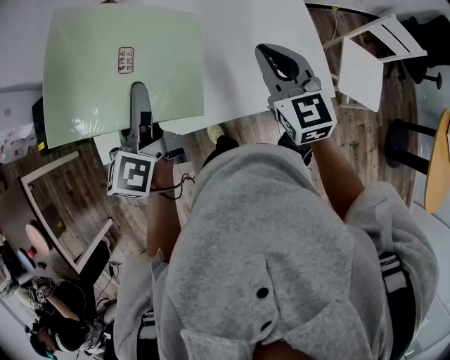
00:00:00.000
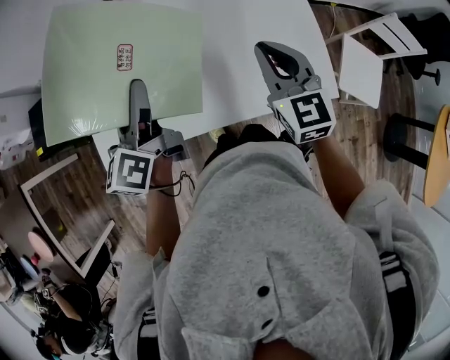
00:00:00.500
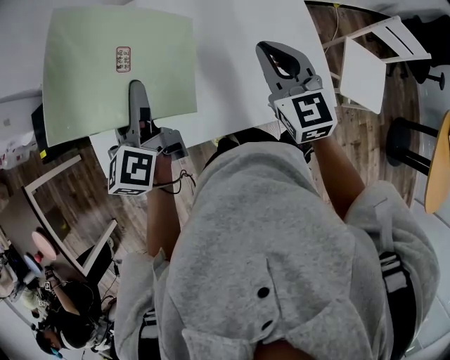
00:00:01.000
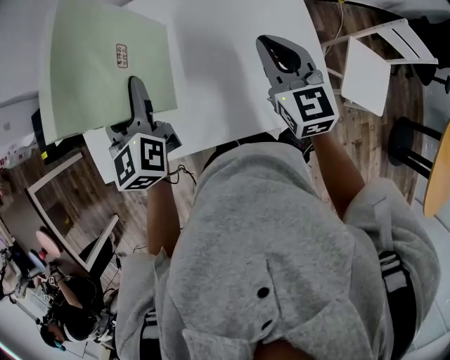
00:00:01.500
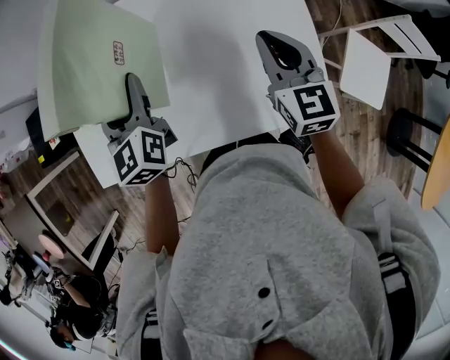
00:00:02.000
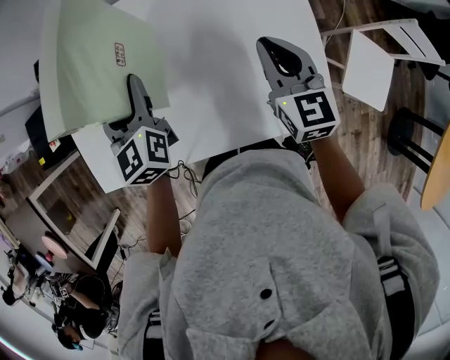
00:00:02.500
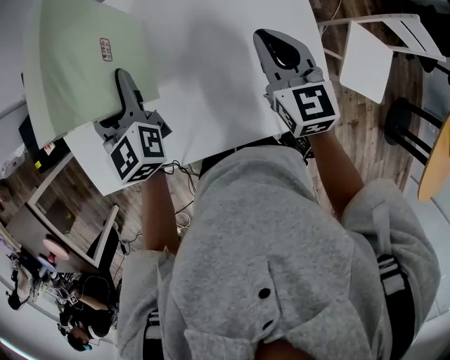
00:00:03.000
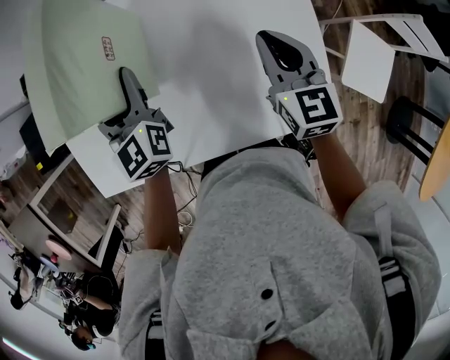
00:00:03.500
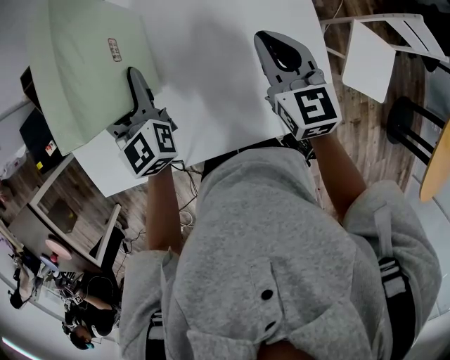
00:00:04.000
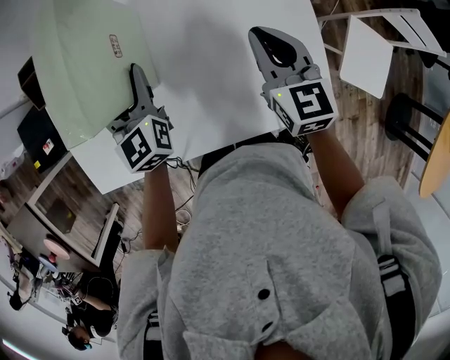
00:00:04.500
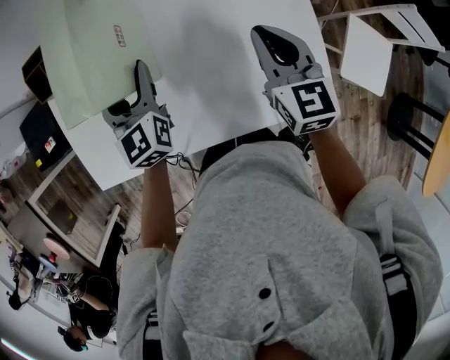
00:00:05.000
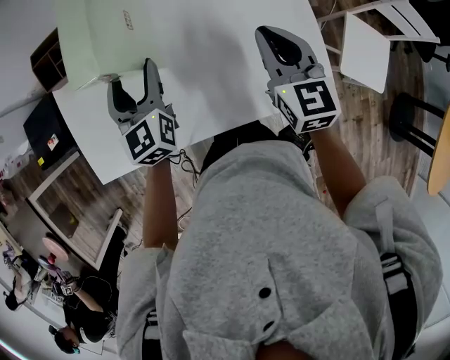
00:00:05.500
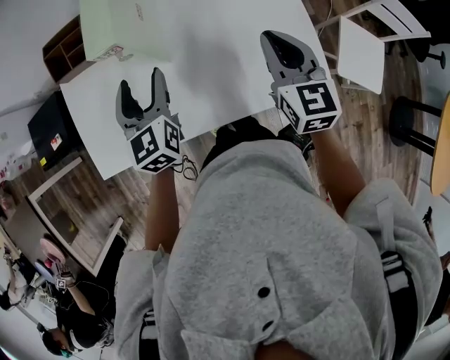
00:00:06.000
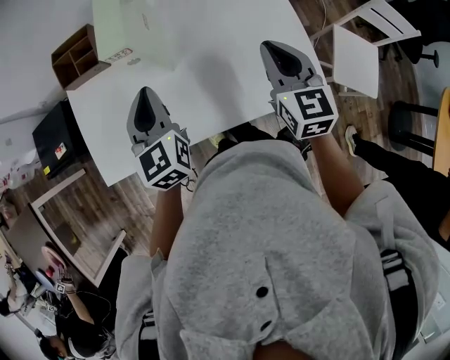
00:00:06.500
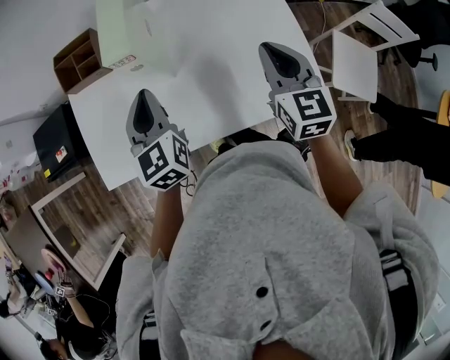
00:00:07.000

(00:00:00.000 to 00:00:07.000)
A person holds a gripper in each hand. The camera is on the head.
00:00:00.000 - 00:00:02.000: The right gripper shifts approximately 15 cm forward and to the right; the left gripper is displaced forward, to the right and downward by approximately 15 cm, and turns by approximately 40 degrees.
00:00:02.000 - 00:00:03.500: The left gripper moves forward, some 5 cm. The right gripper moves some 5 cm.
00:00:03.500 - 00:00:05.000: There are only small adjustments of the grippers.
00:00:05.000 - 00:00:07.000: The two grippers go roughly 10 cm backward and upward. The left gripper closes up.

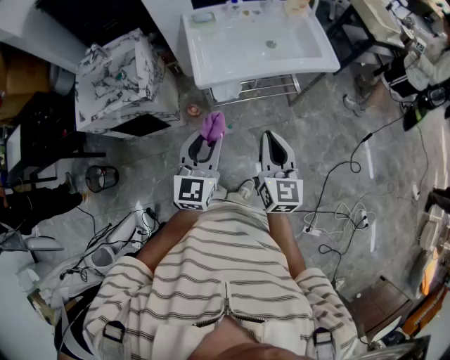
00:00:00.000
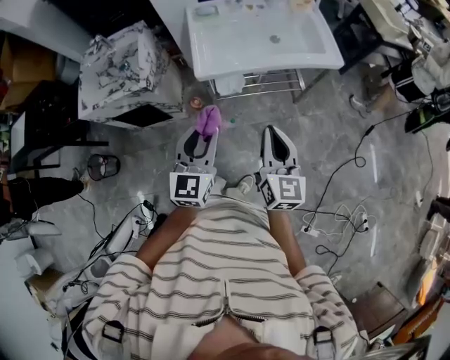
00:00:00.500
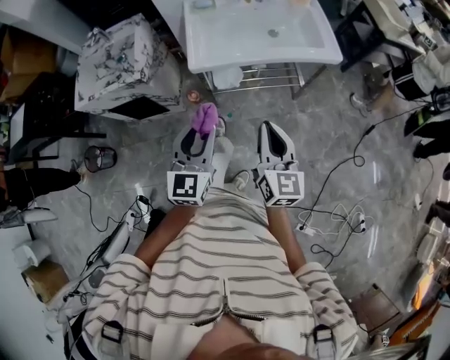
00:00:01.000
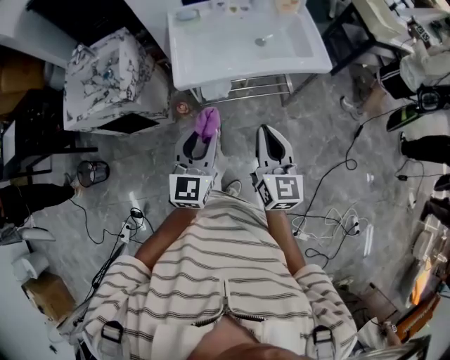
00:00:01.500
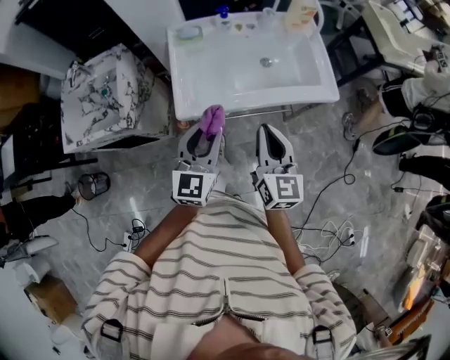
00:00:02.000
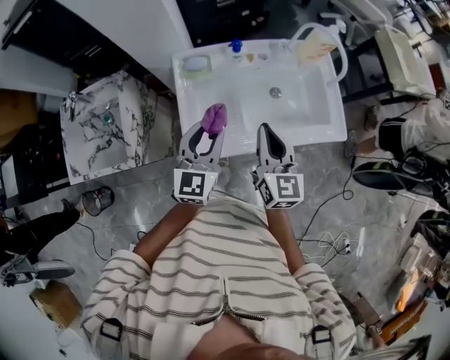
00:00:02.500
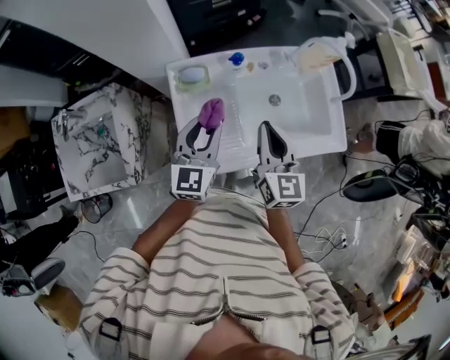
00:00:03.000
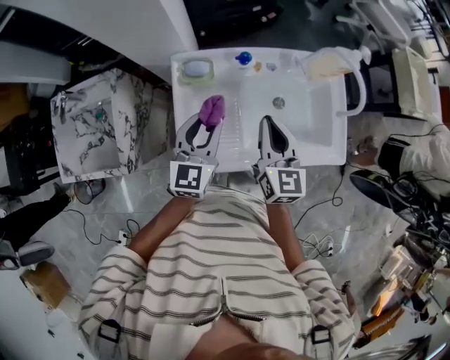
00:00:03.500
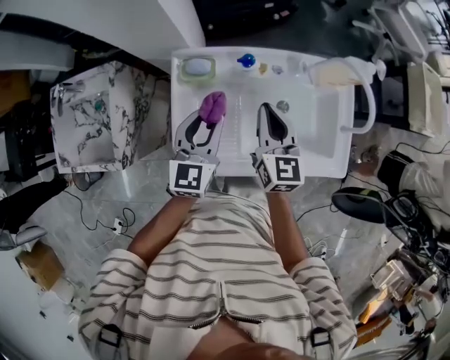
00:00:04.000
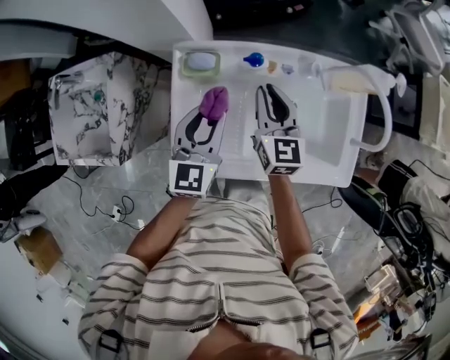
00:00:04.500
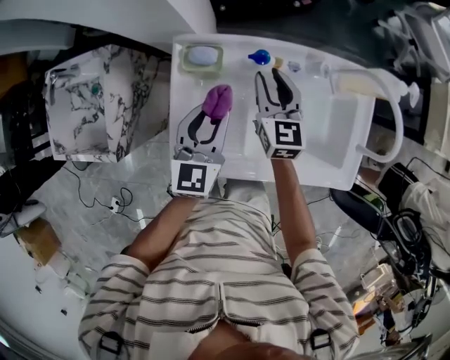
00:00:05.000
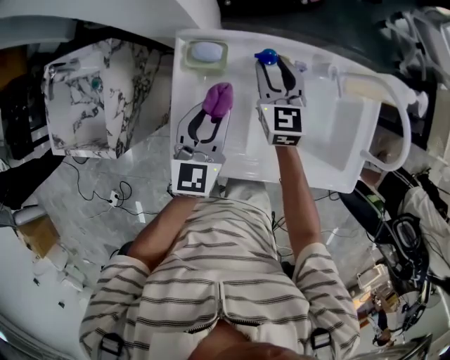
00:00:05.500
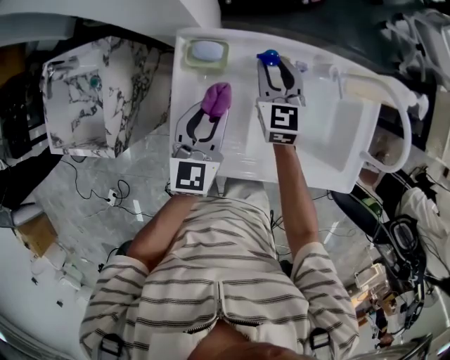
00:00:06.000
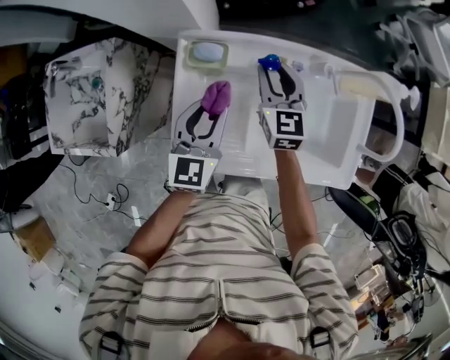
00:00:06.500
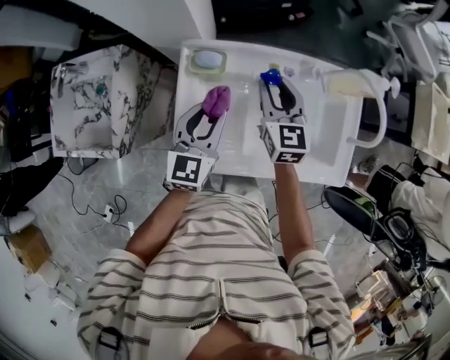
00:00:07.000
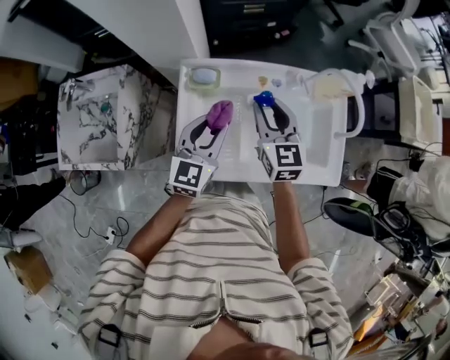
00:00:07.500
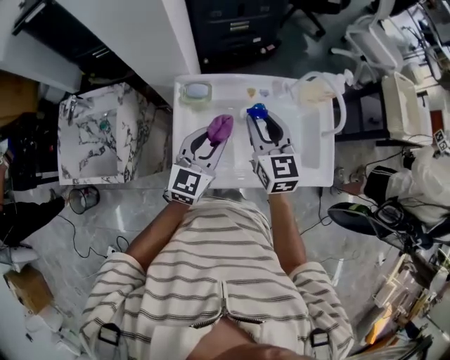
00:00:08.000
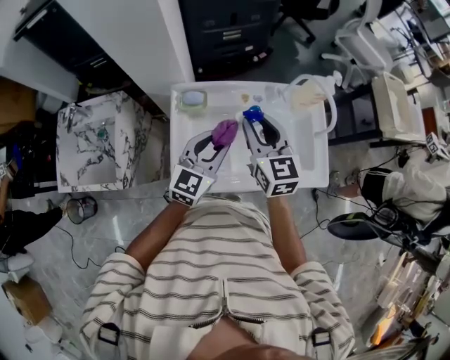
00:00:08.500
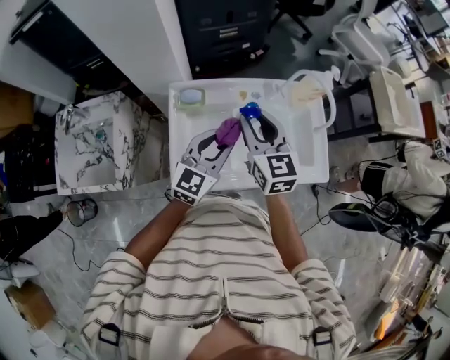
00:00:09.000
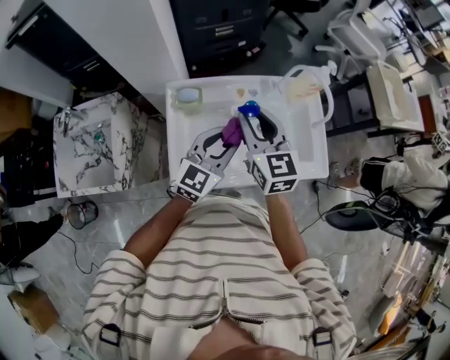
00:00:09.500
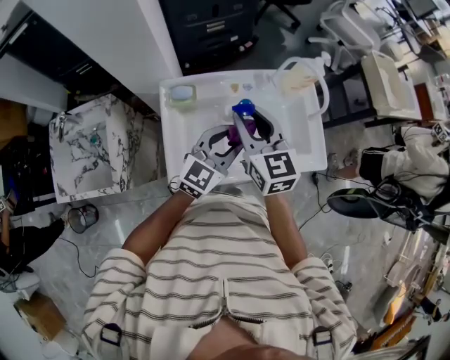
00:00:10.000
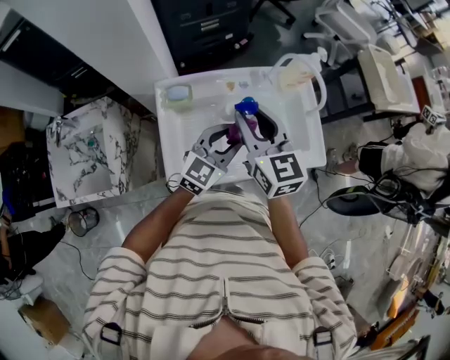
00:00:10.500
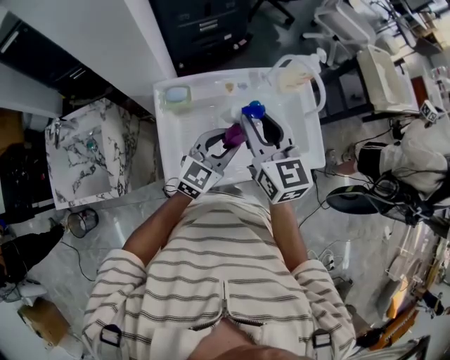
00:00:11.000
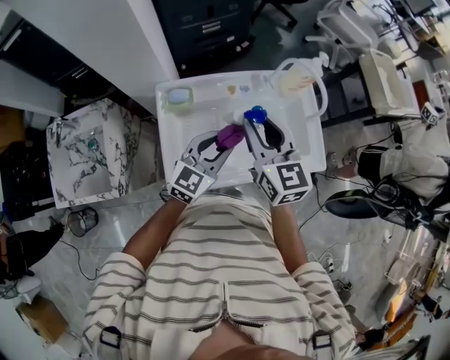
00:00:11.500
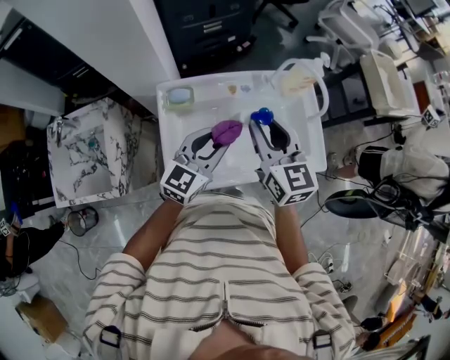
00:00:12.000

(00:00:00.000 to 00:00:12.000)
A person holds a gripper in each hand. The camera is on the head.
00:00:00.000 - 00:00:02.000: The two grippers go about 20 cm forward.
00:00:02.000 - 00:00:04.000: Both grippers travel together forward, roughly 35 cm.
00:00:04.000 - 00:00:06.000: The left gripper moves downward, approximately 5 cm. The right gripper travels forward and downward by roughly 15 cm, and opens up.
00:00:06.000 - 00:00:08.000: The left gripper is displaced upward and backward by approximately 10 cm, and changes its angle by about 20 degrees. The right gripper moves upward and backward, roughly 25 cm.
00:00:08.000 - 00:00:10.000: The right gripper changes place by about 5 cm. The left gripper moves to the right, about 10 cm, and turns by some 20 degrees.
00:00:10.000 - 00:00:12.000: There are only small adjustments of the grippers.

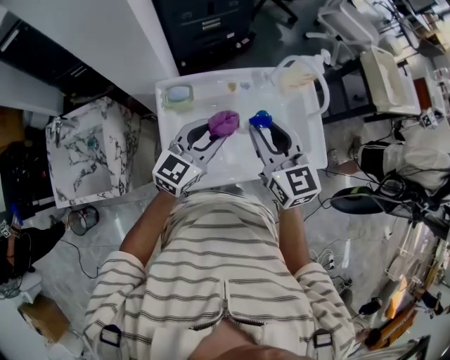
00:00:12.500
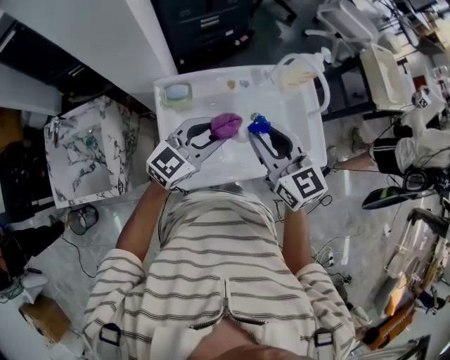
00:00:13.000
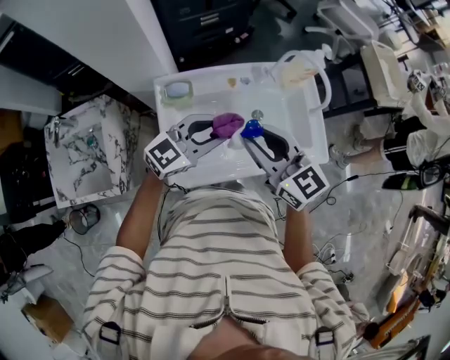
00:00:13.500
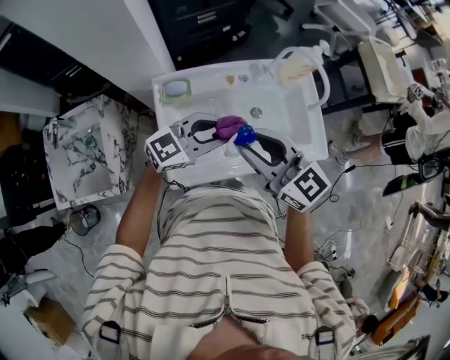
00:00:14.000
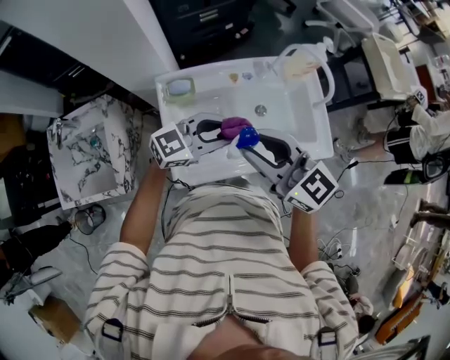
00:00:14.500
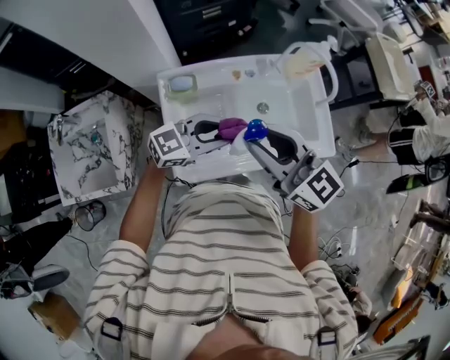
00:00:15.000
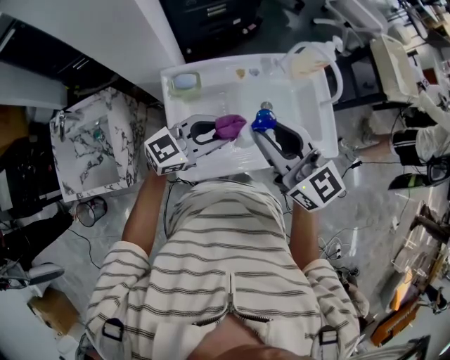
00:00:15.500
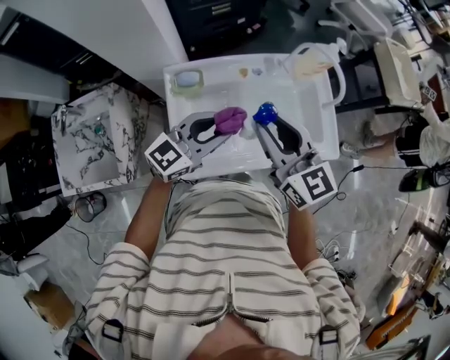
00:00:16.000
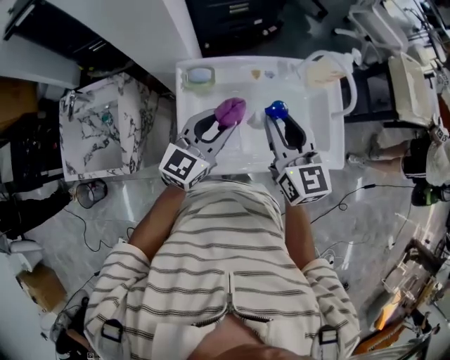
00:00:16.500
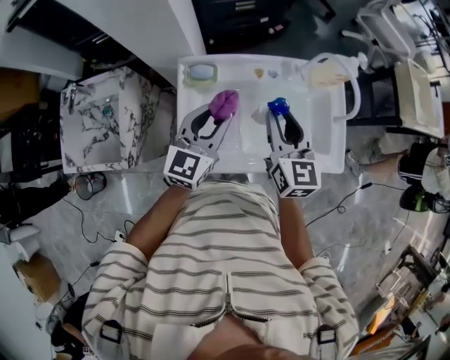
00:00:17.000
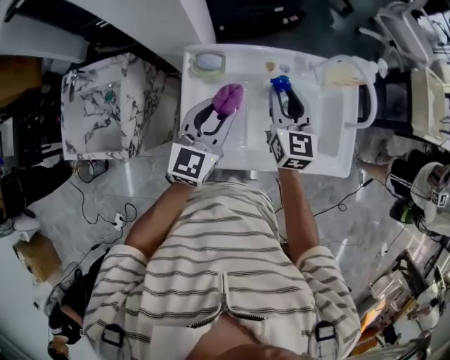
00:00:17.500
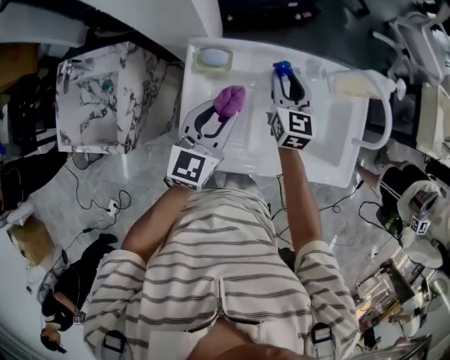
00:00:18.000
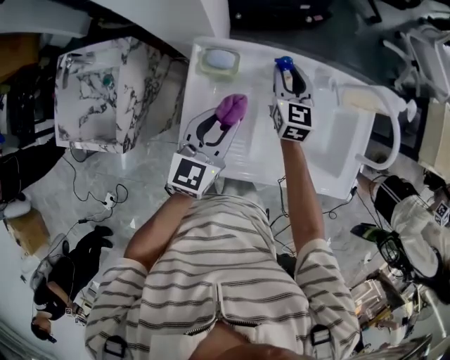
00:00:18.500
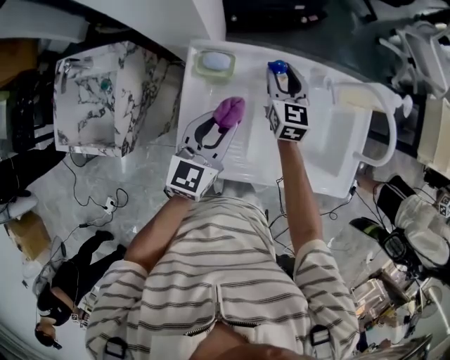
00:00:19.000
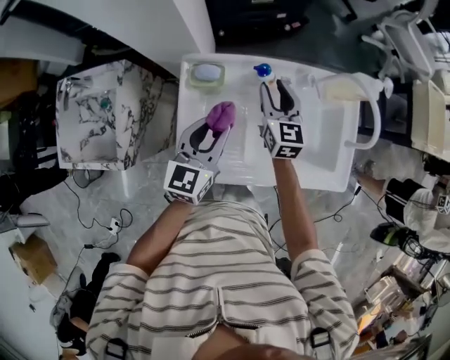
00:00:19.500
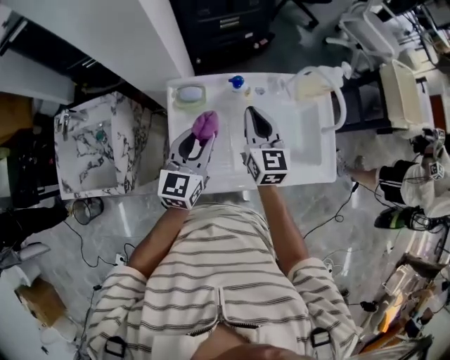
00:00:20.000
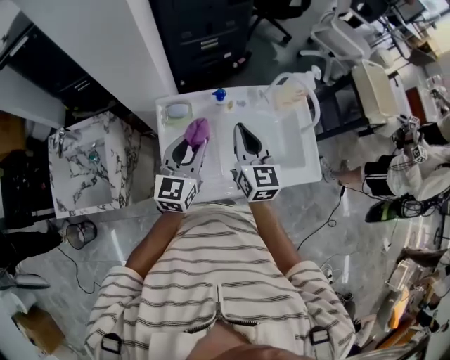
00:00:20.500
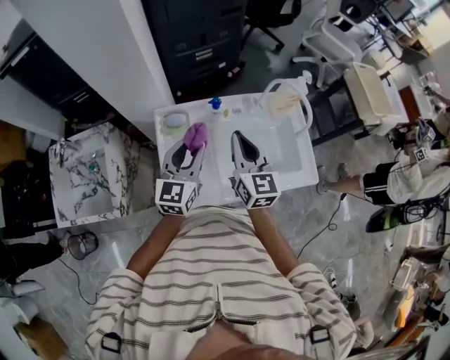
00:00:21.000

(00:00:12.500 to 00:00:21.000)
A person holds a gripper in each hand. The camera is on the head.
00:00:12.500 - 00:00:14.500: The left gripper rotates roughly 30 degrees; the right gripper moves about 10 cm, and turns by some 30 degrees.
00:00:14.500 - 00:00:16.500: The right gripper shifts by about 10 cm, and turns by roughly 30 degrees; the left gripper shifts by some 5 cm, and swivels about 40 degrees.
00:00:16.500 - 00:00:19.000: The left gripper is displaced downward and forward by about 10 cm, and swivels approximately 20 degrees. The right gripper travels forward and downward by roughly 30 cm.
00:00:19.000 - 00:00:21.000: The right gripper is displaced backward and upward by some 25 cm, and closes, while the left gripper is displaced upward by approximately 10 cm.
